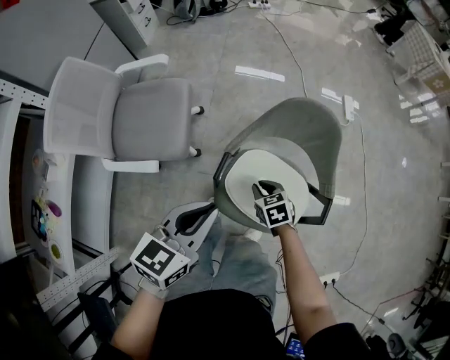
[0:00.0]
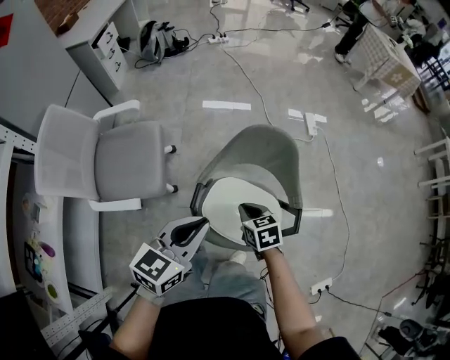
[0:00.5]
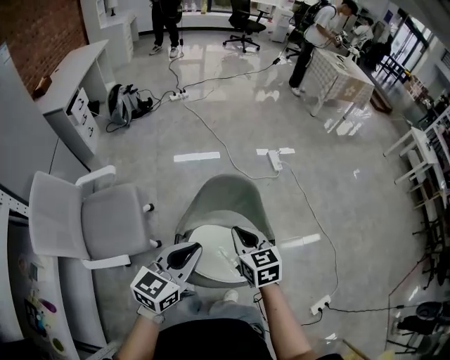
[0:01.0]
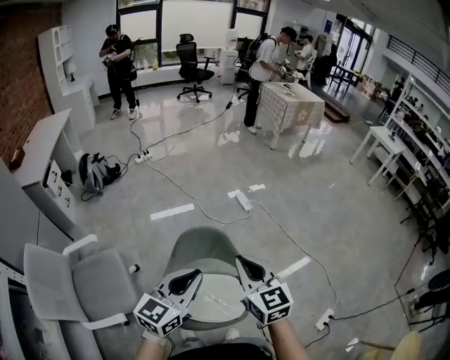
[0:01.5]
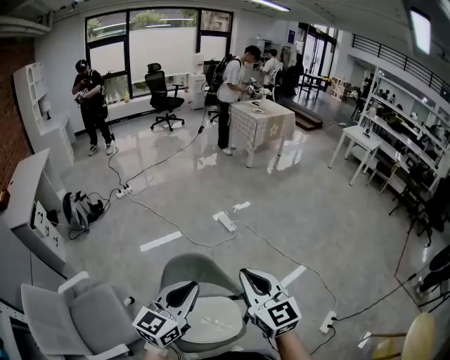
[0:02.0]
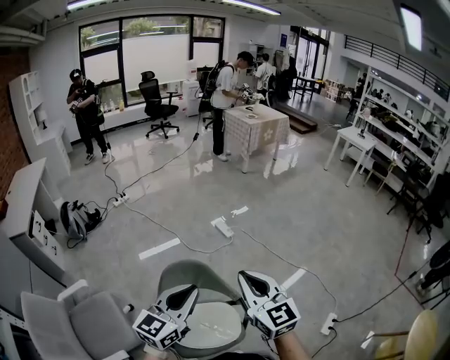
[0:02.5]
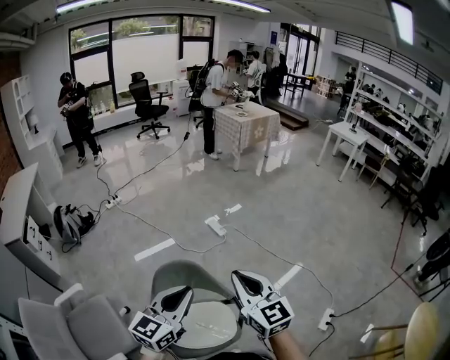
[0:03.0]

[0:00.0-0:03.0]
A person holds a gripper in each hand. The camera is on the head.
0:00.0 to 0:01.5: The right gripper shifts roughly 40 cm upward, and tips its fingers upward by some 40 degrees. The left gripper ends up some 25 cm from where it was, and changes its angle by roughly 30 degrees.
0:01.5 to 0:03.0: The right gripper is displaced to the right and upward by roughly 10 cm. Meanwhile the left gripper heads to the right, covering about 5 cm.

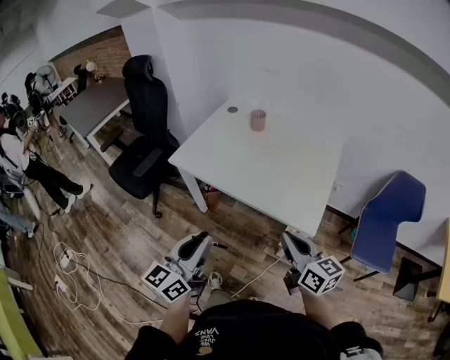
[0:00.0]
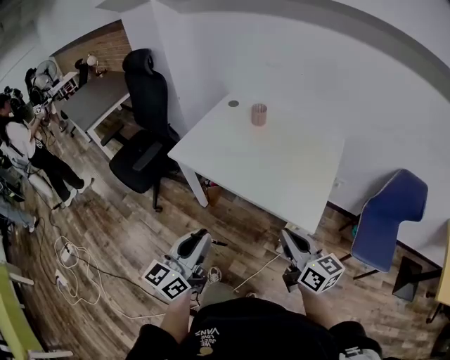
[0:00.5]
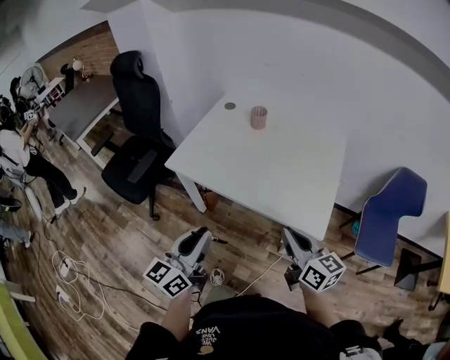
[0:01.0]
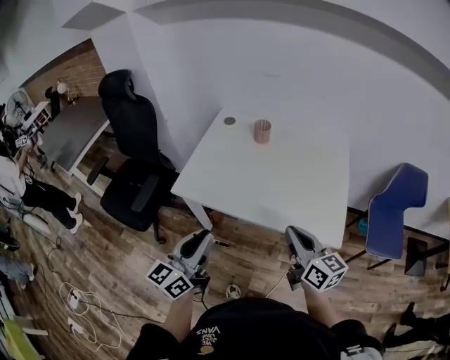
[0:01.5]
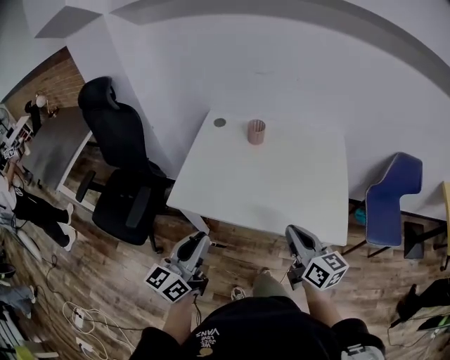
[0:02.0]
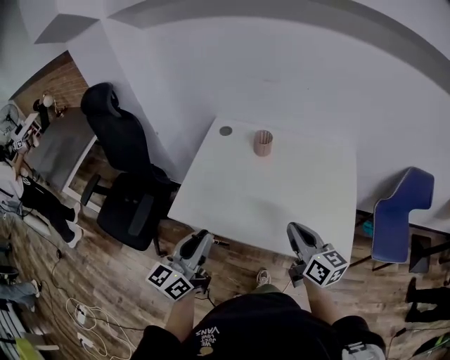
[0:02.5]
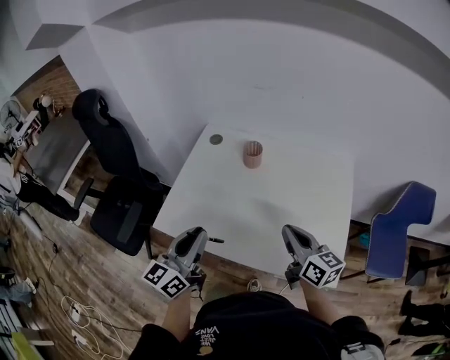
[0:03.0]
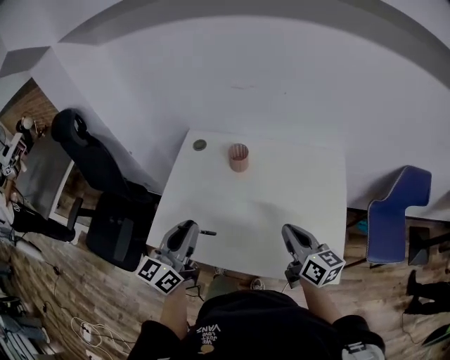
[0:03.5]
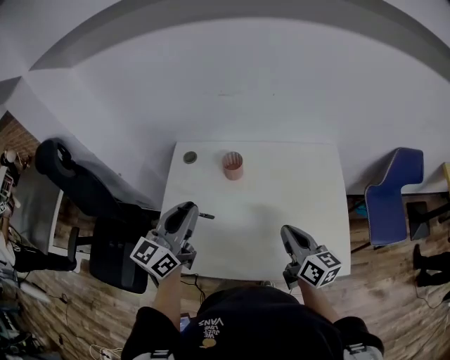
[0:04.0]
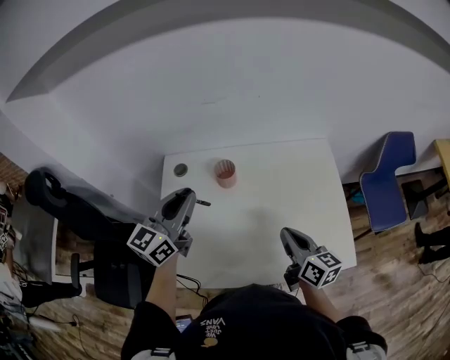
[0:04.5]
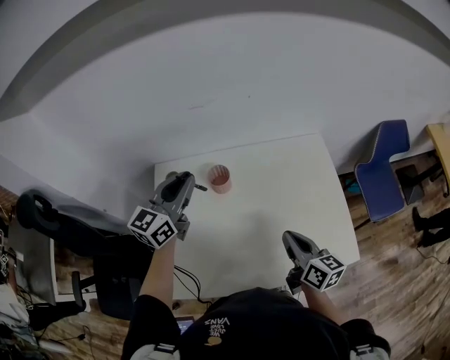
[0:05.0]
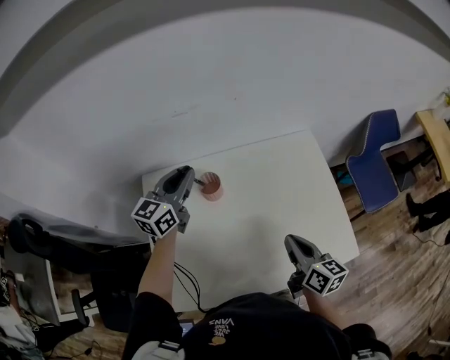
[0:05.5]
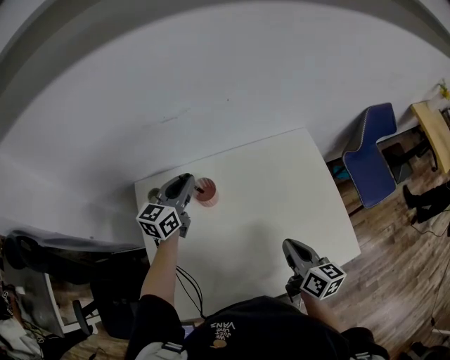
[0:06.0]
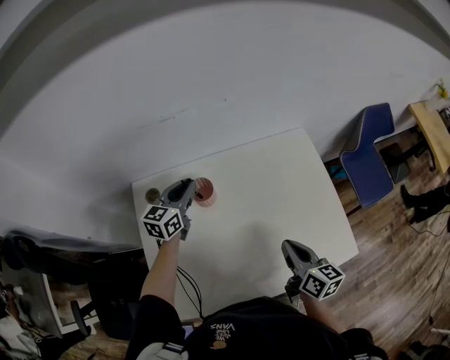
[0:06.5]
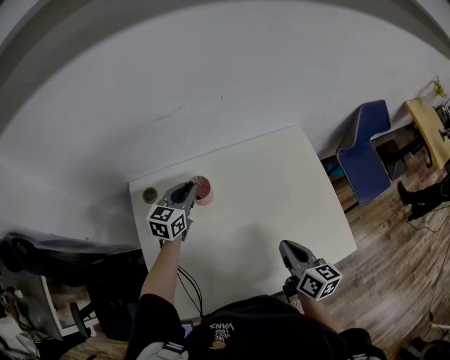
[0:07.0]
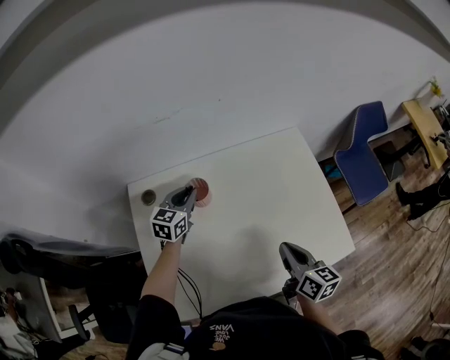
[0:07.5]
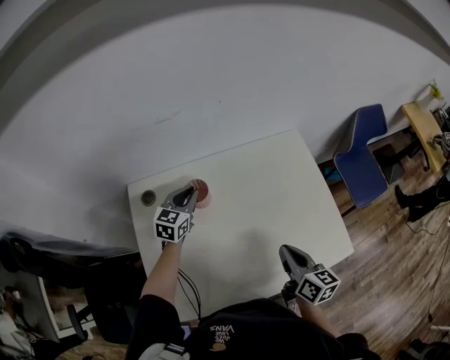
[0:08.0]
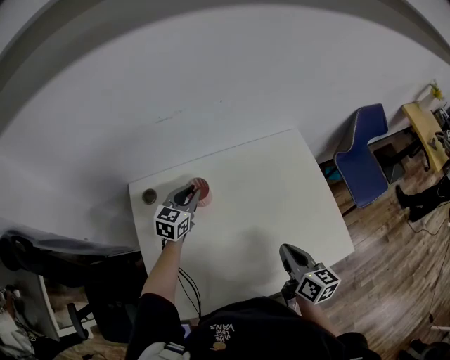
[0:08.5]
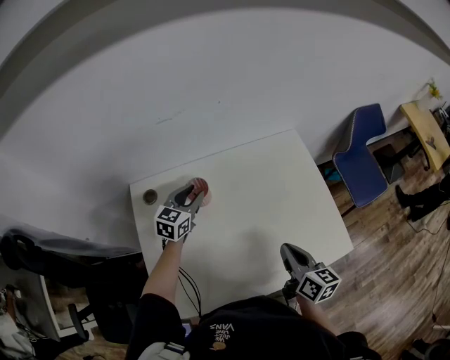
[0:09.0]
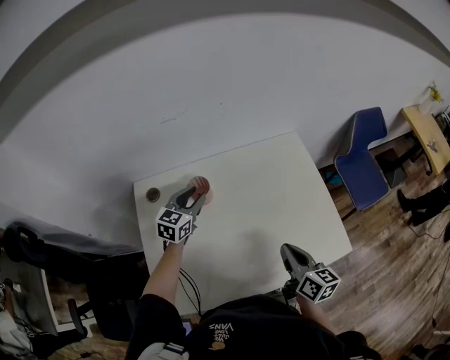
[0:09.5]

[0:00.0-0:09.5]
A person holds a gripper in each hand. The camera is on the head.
0:00.0 to 0:02.0: Both grippers move forward and to the left, some 25 cm.
0:02.0 to 0:04.0: The left gripper heads forward, covering roughly 30 cm. Meanwhile the right gripper heads forward, covering some 20 cm.
0:04.0 to 0:05.5: The left gripper moves forward, about 25 cm.
0:05.5 to 0:07.5: The left gripper shifts approximately 15 cm downward, and rotates about 20 degrees.
0:07.5 to 0:09.5: The grippers make only small movements.

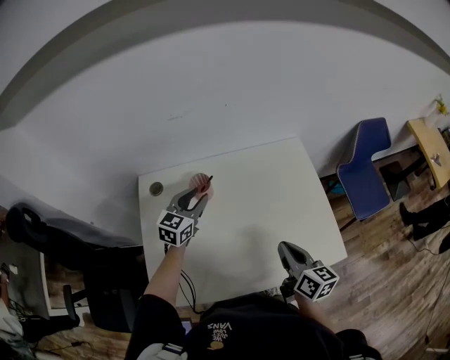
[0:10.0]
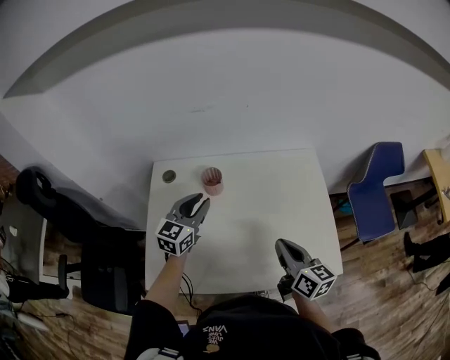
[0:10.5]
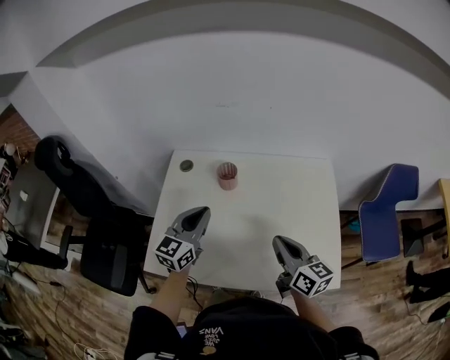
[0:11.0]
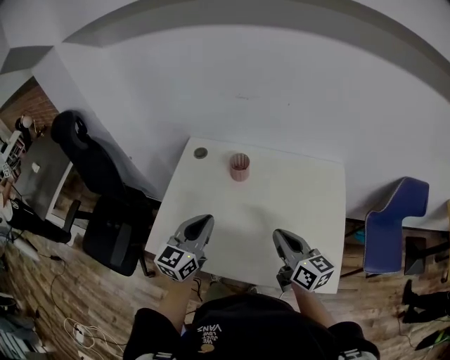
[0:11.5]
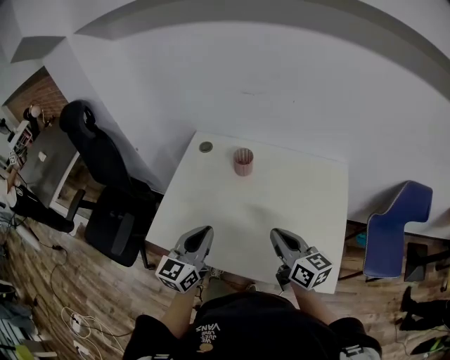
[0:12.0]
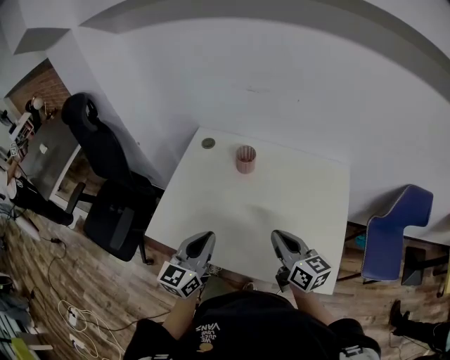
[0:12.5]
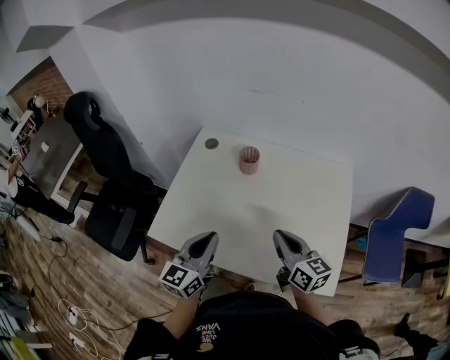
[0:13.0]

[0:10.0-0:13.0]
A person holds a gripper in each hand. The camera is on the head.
0:10.0 to 0:11.5: The right gripper moves about 5 cm, and swivels roughly 30 degrees. The left gripper shifts by approximately 20 cm, rotates some 30 degrees, and closes its fingers.
0:11.5 to 0:13.0: The left gripper moves backward, some 10 cm.

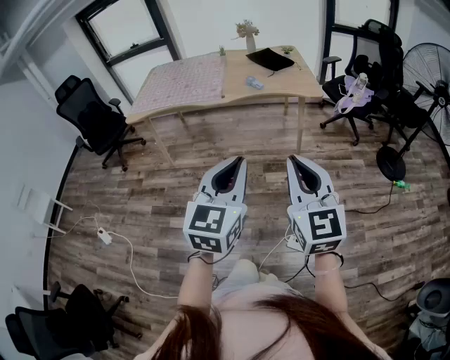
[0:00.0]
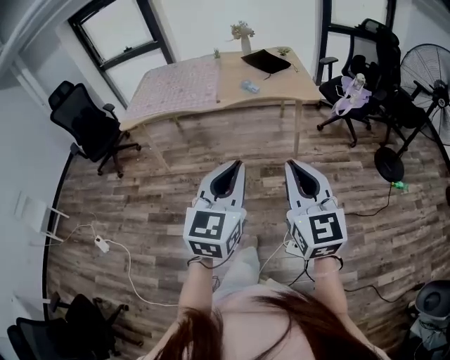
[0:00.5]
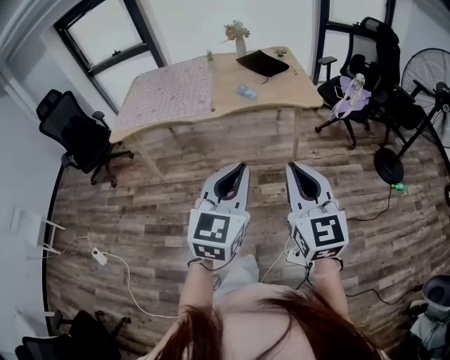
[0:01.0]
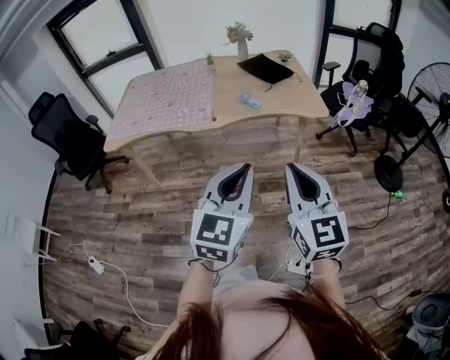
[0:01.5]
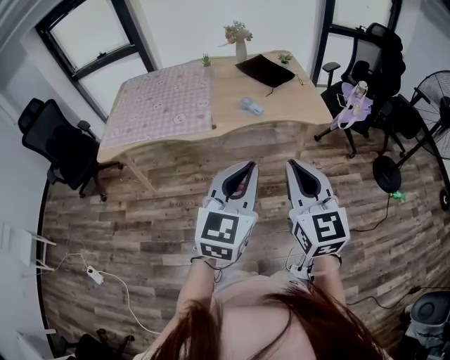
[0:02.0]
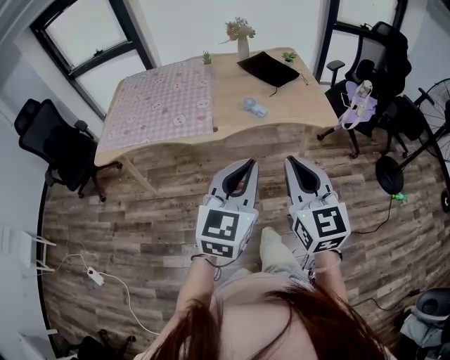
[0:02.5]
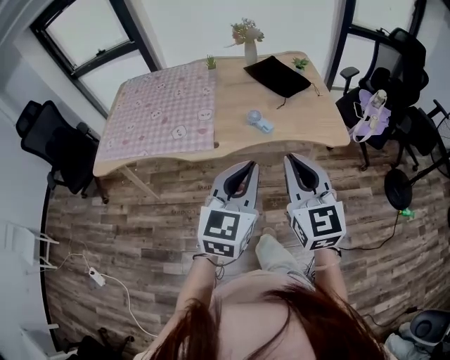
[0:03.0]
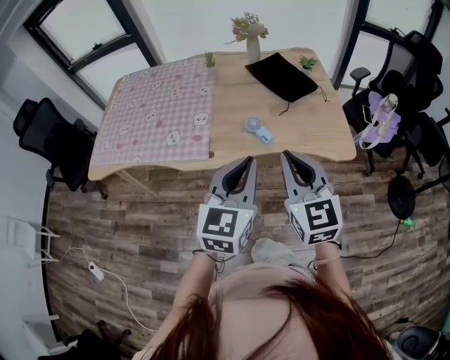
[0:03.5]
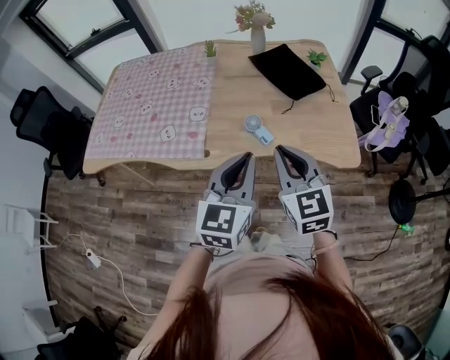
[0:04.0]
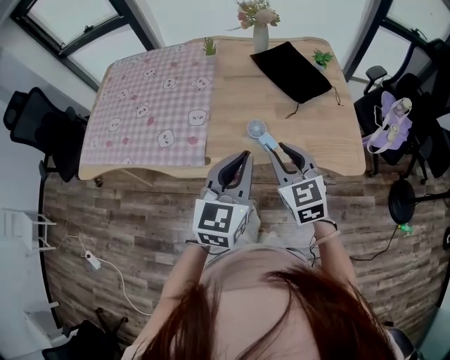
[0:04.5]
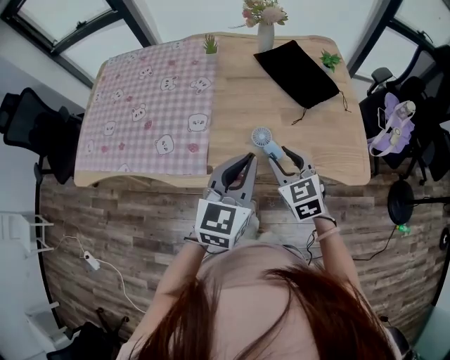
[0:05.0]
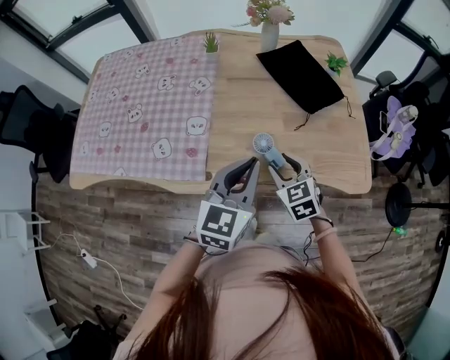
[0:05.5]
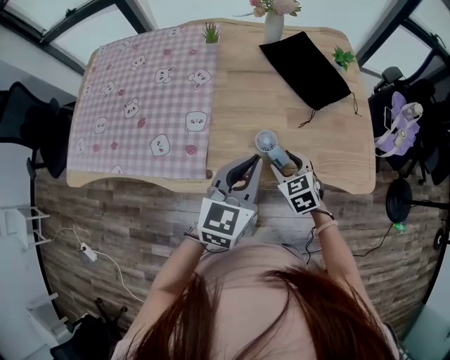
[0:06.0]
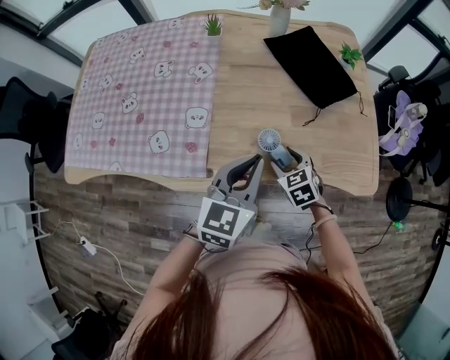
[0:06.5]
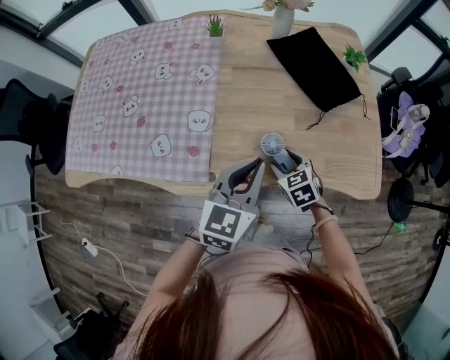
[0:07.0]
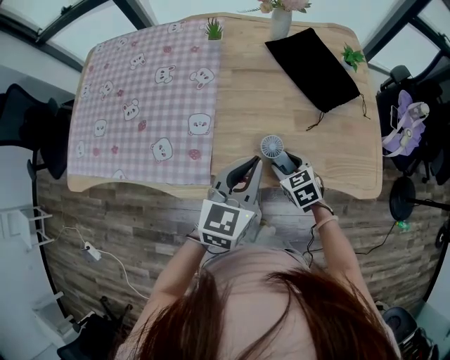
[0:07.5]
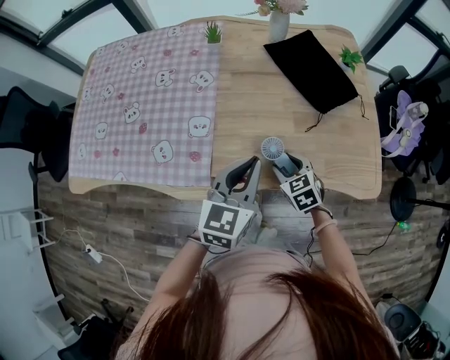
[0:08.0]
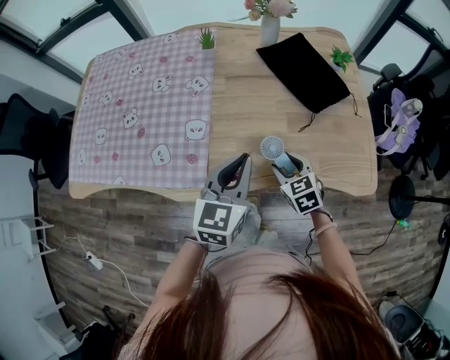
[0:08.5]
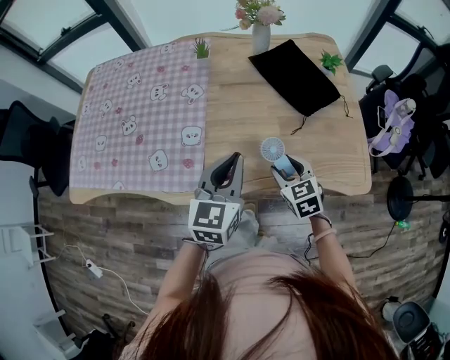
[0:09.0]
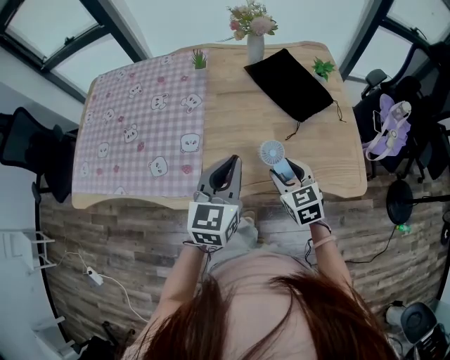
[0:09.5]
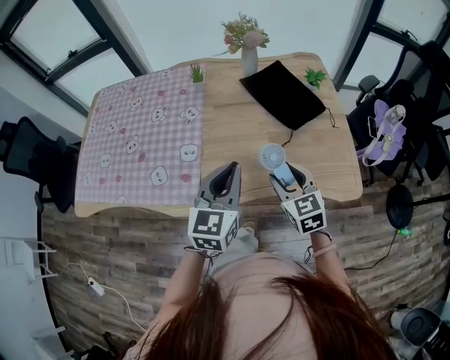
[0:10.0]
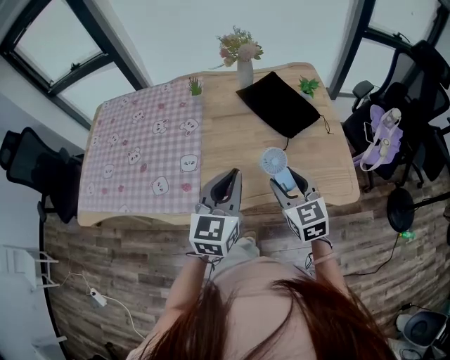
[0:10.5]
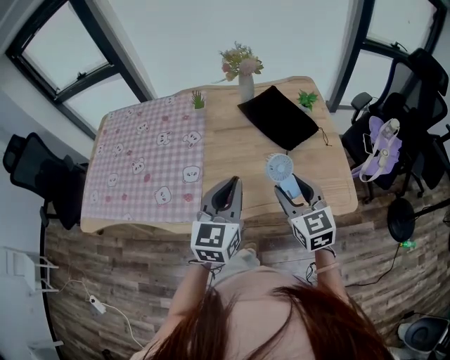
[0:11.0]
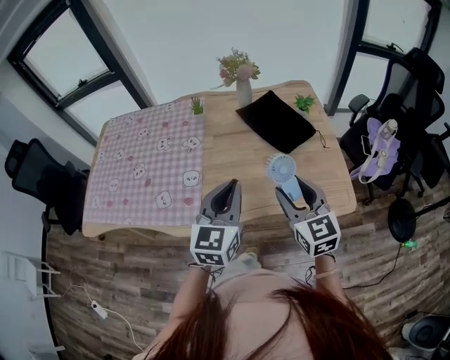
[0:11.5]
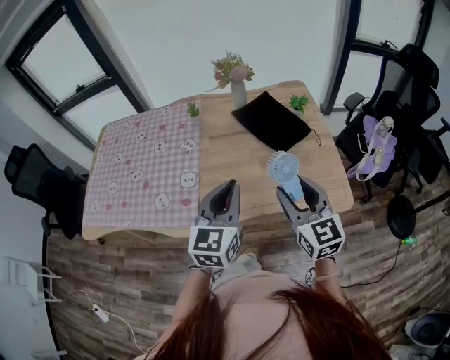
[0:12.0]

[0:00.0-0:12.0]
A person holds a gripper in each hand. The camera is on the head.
0:00.0 to 0:02.0: The grippers both shift forward by roughly 30 cm.
0:02.0 to 0:04.0: Both grippers move forward, approximately 35 cm.
0:04.0 to 0:06.0: The right gripper shifts some 30 cm downward and forward, angles its fingers downward, by about 30 degrees, and opens its fingers. Meanwhile the left gripper is displaced forward and downward by about 20 cm.
0:06.0 to 0:08.0: There are only small adjustments of the grippers.
0:08.0 to 0:10.0: The right gripper travels upward by about 15 cm, and turns by approximately 20 degrees; the left gripper goes approximately 5 cm upward.
0:10.0 to 0:12.0: The right gripper moves upward, roughly 15 cm, and swivels roughly 20 degrees. Meanwhile the left gripper travels upward by about 5 cm.
